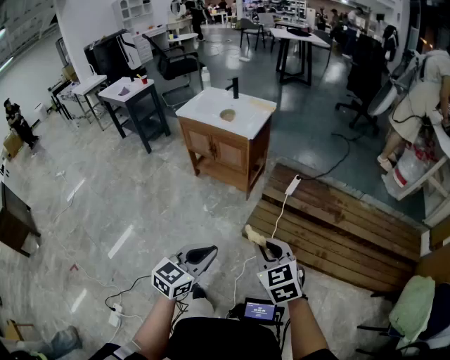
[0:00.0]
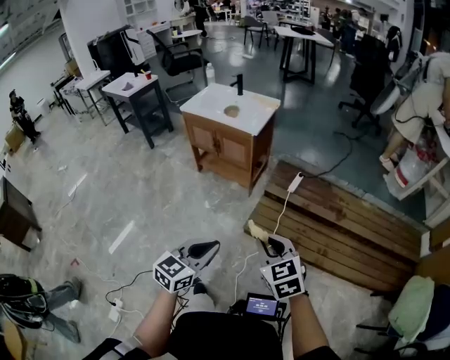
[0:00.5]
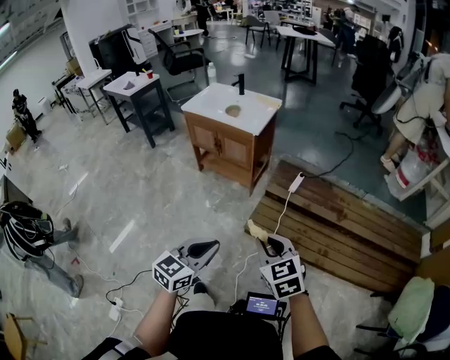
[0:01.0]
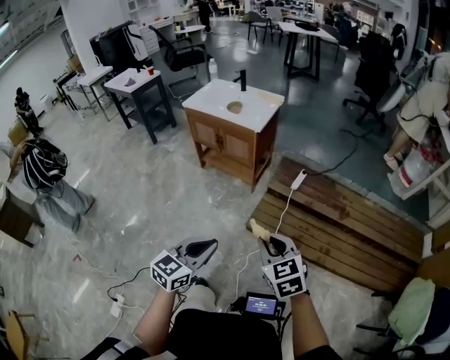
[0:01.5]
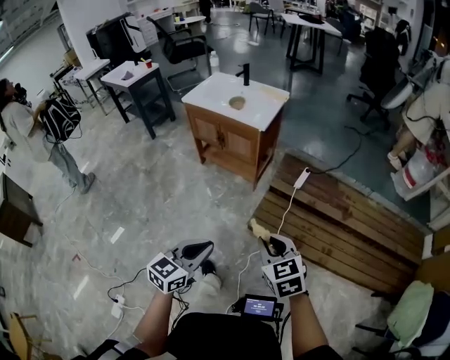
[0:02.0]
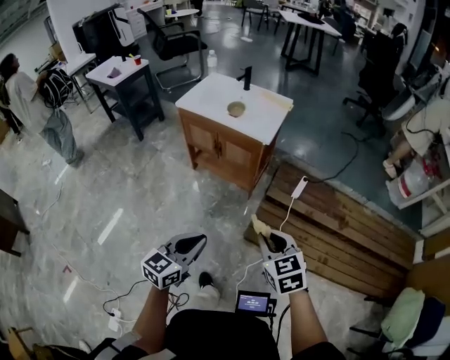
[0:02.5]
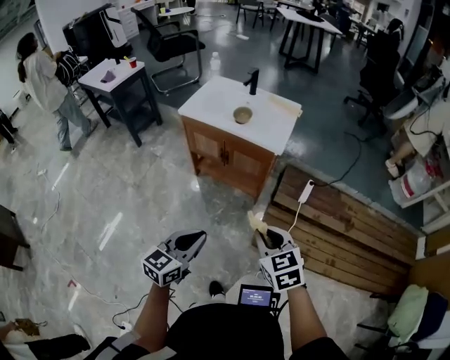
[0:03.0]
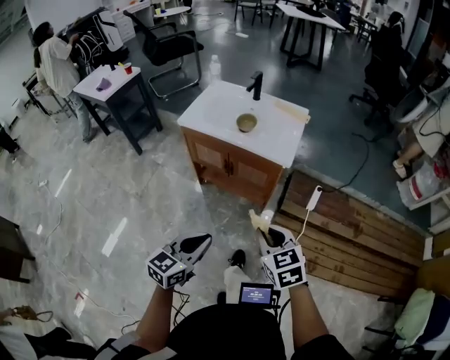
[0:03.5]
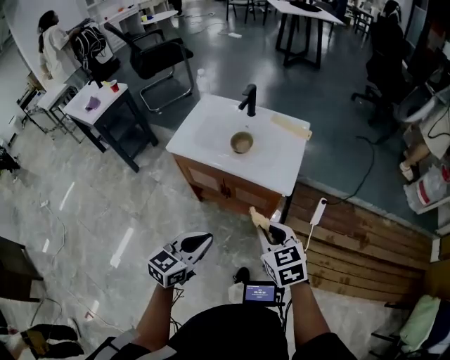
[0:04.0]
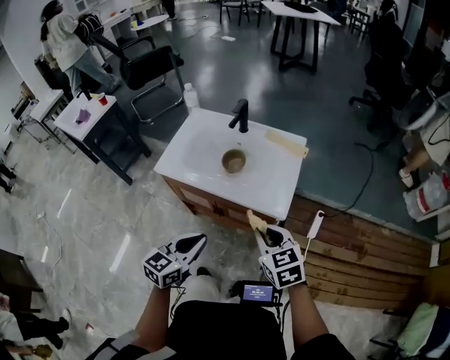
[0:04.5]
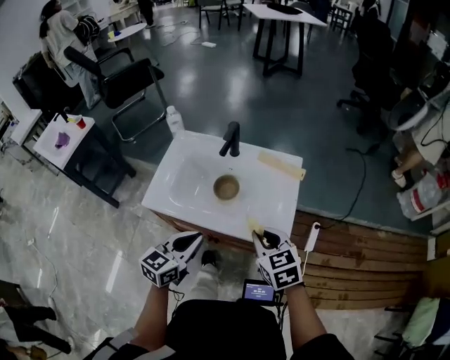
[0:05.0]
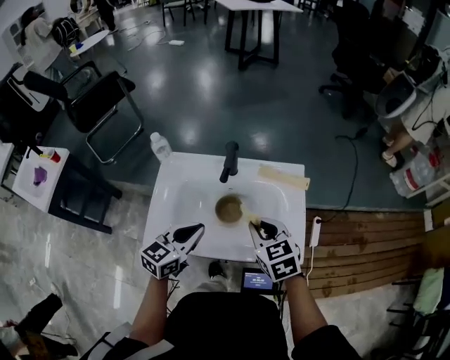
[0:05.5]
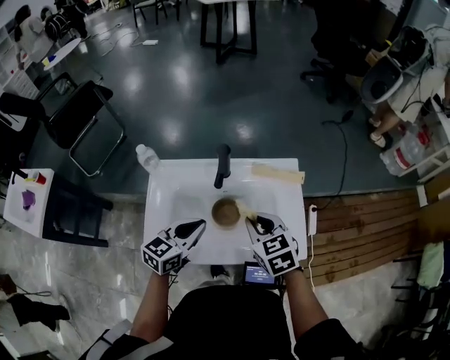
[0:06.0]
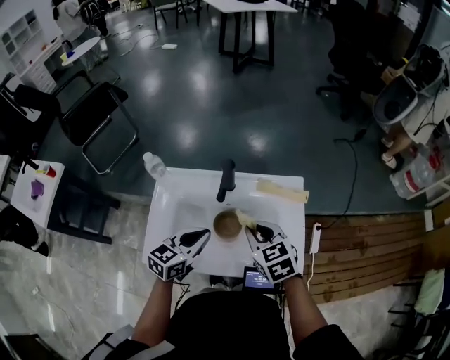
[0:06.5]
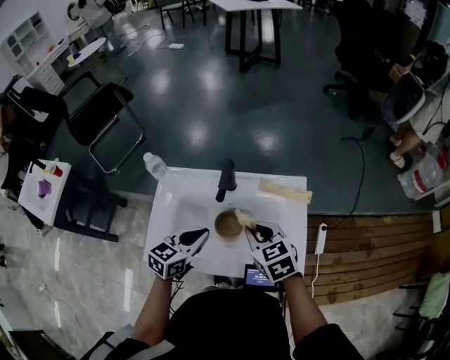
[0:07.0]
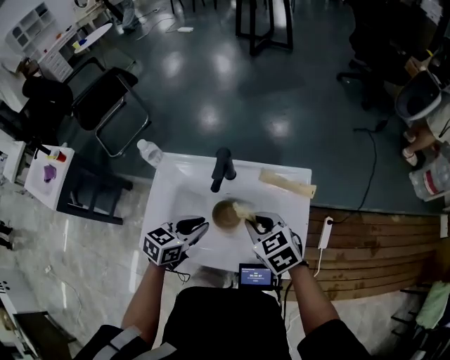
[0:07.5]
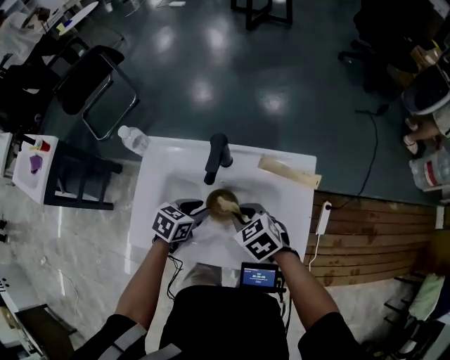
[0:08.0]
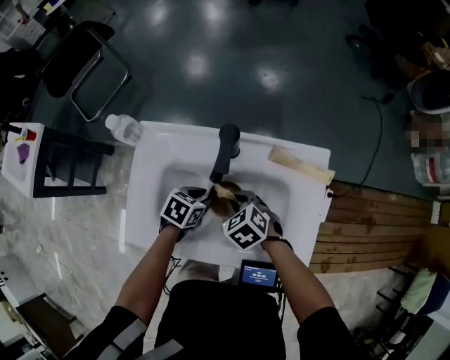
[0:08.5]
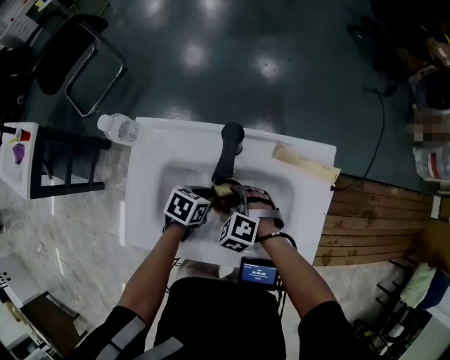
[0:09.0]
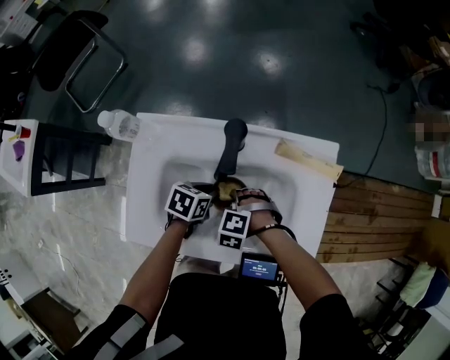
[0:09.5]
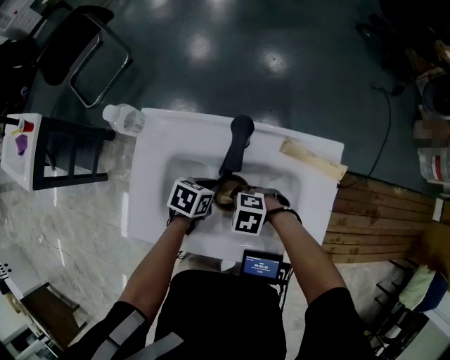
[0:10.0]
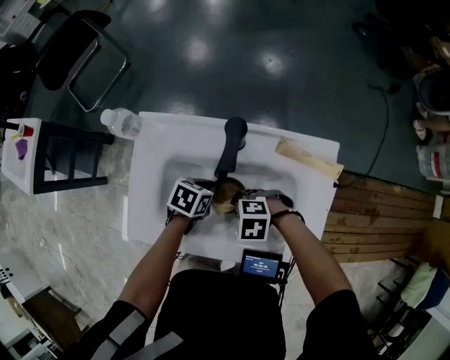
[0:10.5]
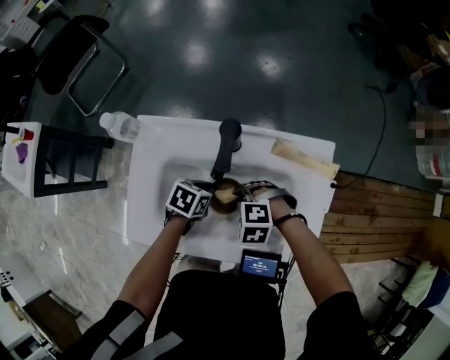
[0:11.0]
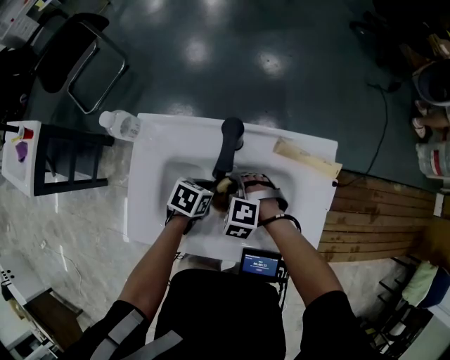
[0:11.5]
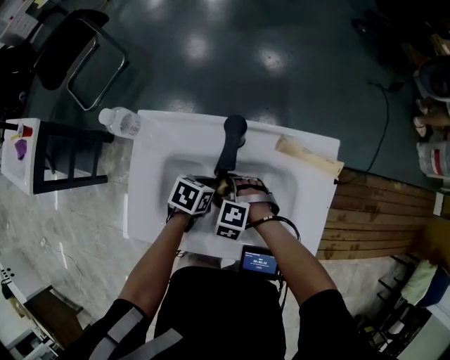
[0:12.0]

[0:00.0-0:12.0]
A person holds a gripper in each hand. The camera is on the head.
0:00.0 to 0:02.0: The left gripper moves to the left, some 5 cm; the right gripper moves roughly 5 cm.
0:02.0 to 0:04.0: The two grippers travel together, forward and to the left, about 50 cm.
0:04.0 to 0:06.0: The two grippers go roughly 40 cm forward. The right gripper turns by roughly 20 degrees, while the left gripper changes its angle by some 20 degrees.
0:06.0 to 0:08.0: The grippers both shift downward by some 15 cm. The left gripper tilts its fingers approximately 30 degrees downward, and opens its fingers, while the right gripper turns by roughly 30 degrees.
0:08.0 to 0:10.0: The right gripper shifts roughly 10 cm downward, and swivels about 40 degrees; the left gripper moves downward, approximately 10 cm.
0:10.0 to 0:12.0: The right gripper moves approximately 5 cm, and swivels approximately 30 degrees.

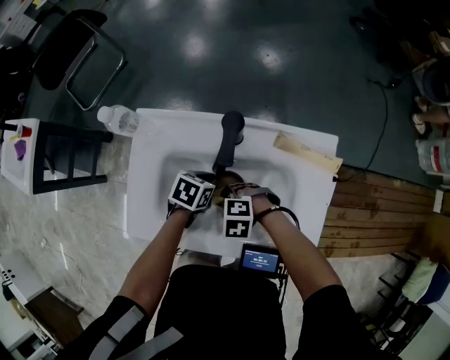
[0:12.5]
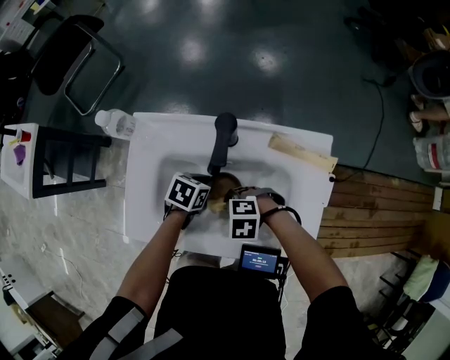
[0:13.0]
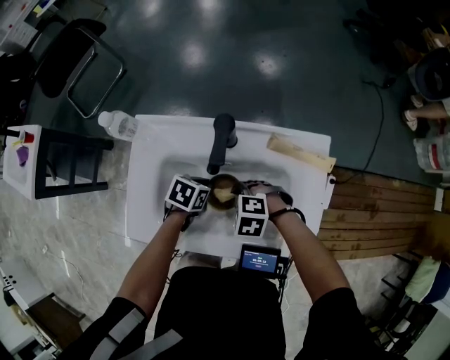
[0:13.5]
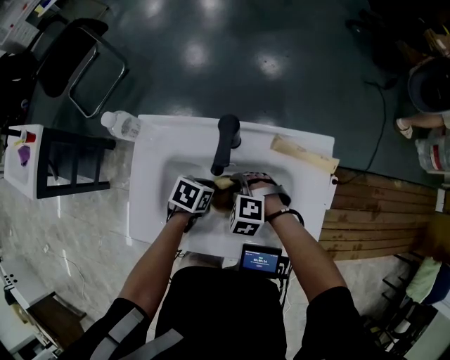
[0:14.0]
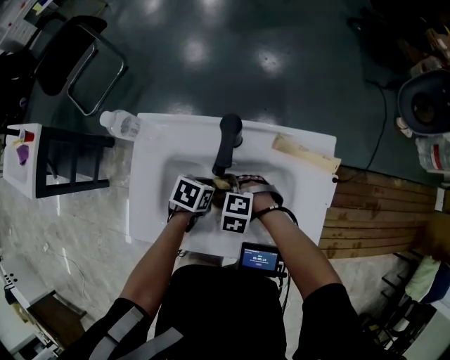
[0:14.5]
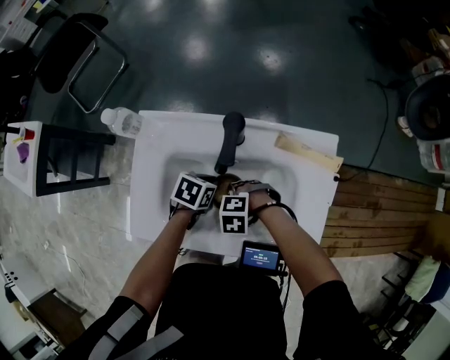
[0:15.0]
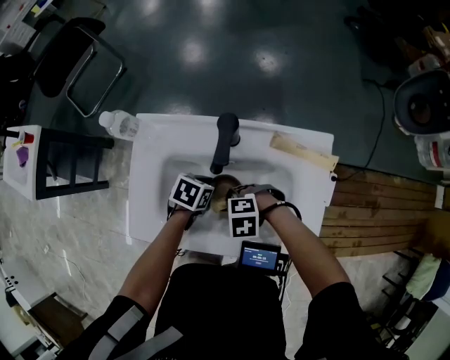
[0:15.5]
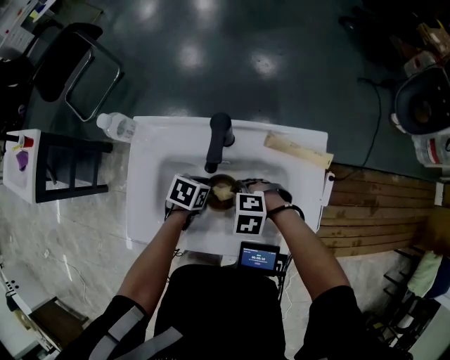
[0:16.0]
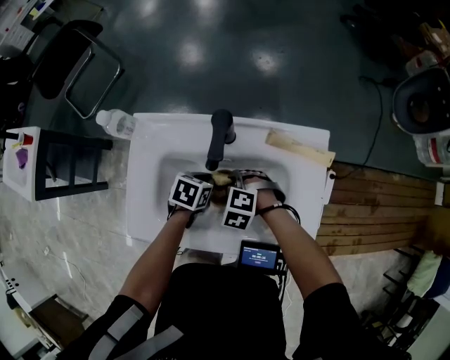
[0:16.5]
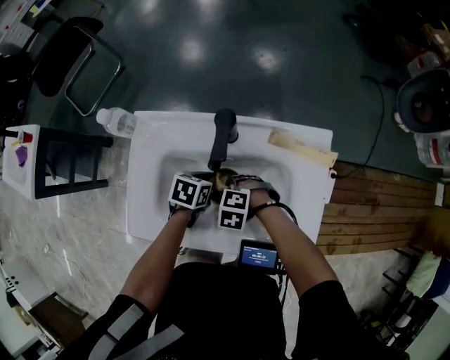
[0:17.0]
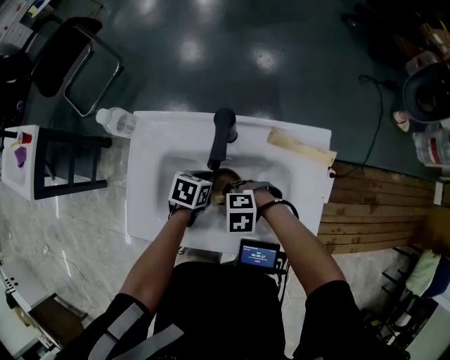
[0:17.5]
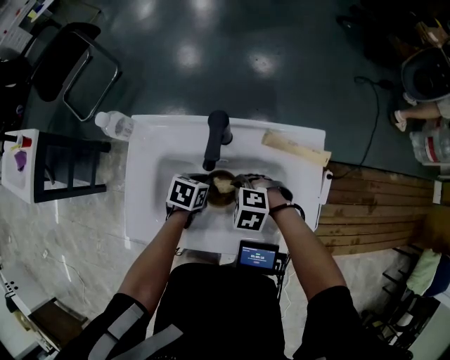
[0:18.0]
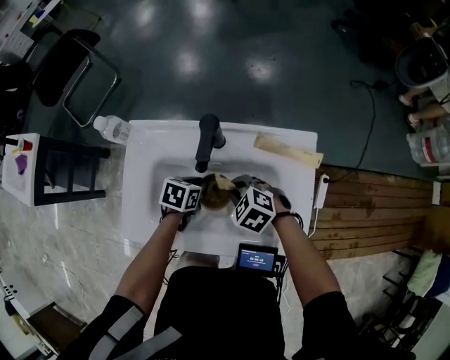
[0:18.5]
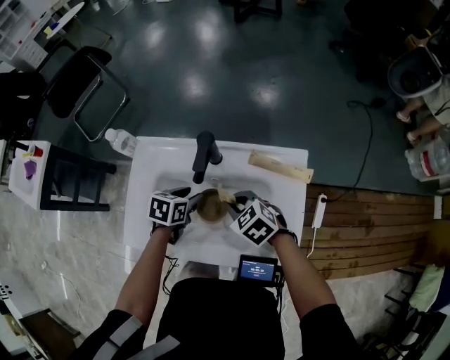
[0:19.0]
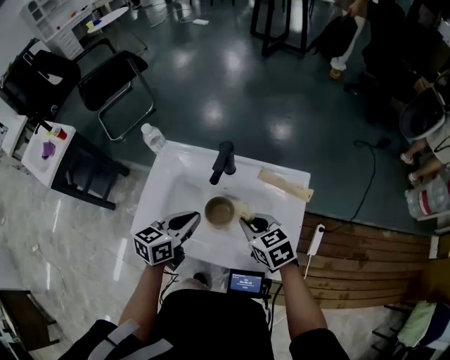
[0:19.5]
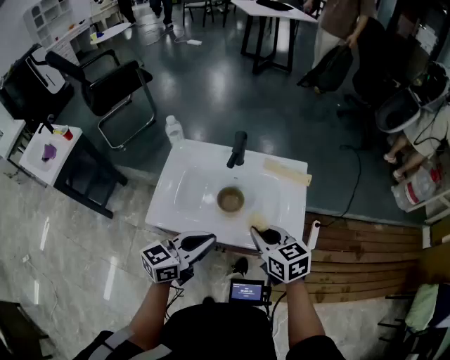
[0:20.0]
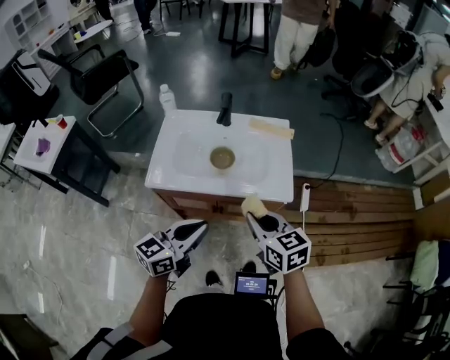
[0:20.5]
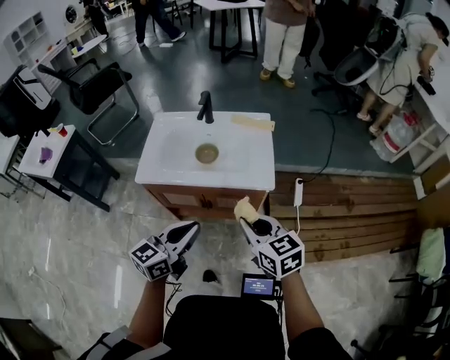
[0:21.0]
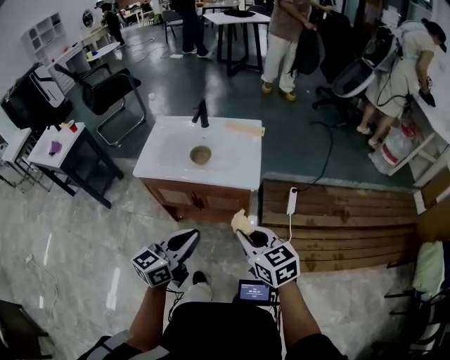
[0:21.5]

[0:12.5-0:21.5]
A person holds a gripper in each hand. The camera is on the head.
0:17.0 to 0:19.5: Both grippers travel together upward, roughly 20 cm. The left gripper points its fingers about 40 degrees further upward, and opens, then closes again. Meanwhile the right gripper tilts its fingers roughly 40 degrees upward.
0:19.5 to 0:21.5: The pair of grippers is taken backward, approximately 50 cm. The left gripper changes its angle by roughly 20 degrees.

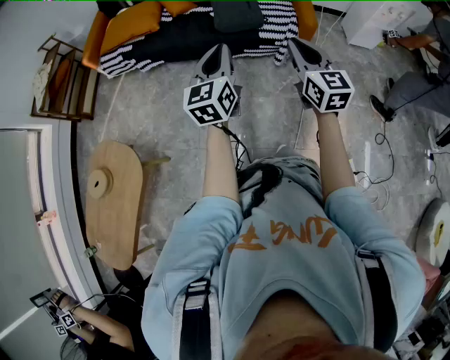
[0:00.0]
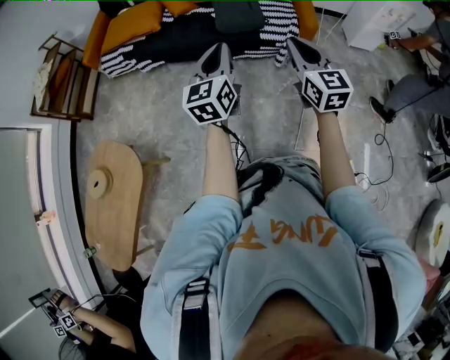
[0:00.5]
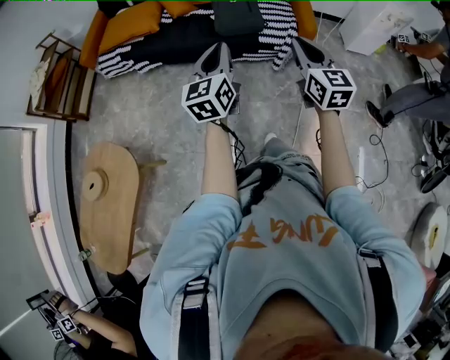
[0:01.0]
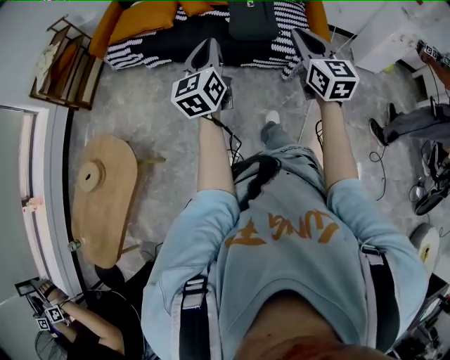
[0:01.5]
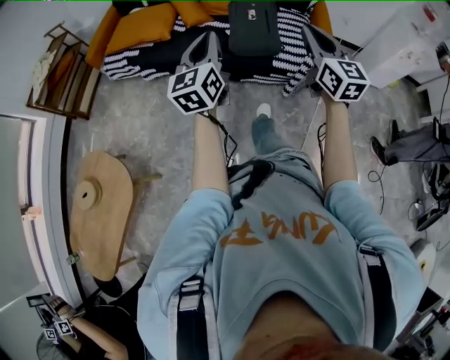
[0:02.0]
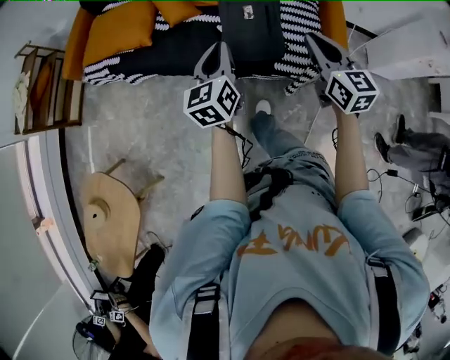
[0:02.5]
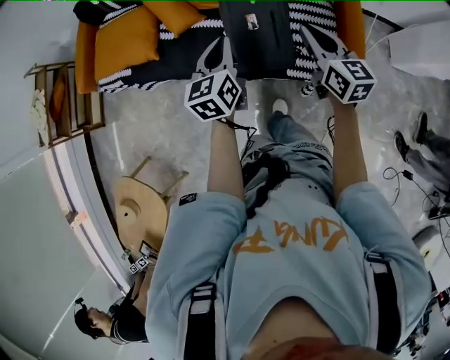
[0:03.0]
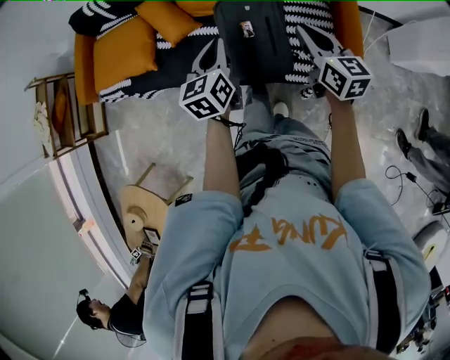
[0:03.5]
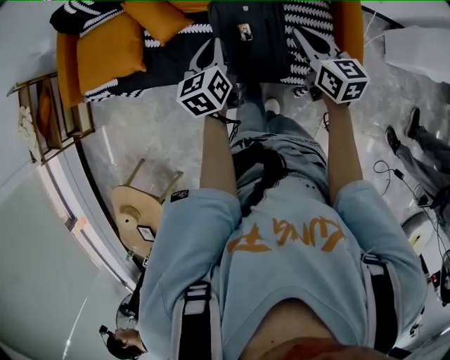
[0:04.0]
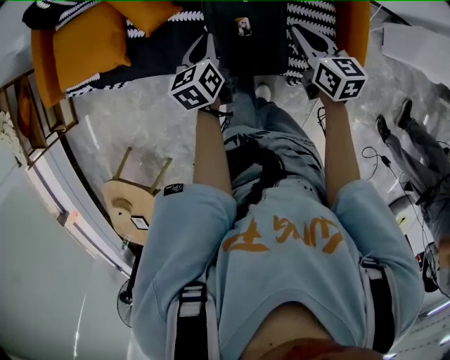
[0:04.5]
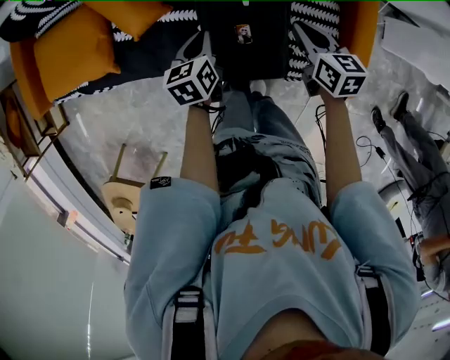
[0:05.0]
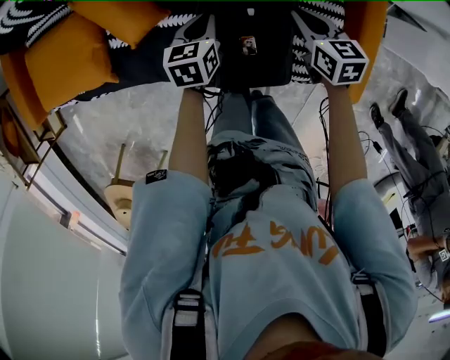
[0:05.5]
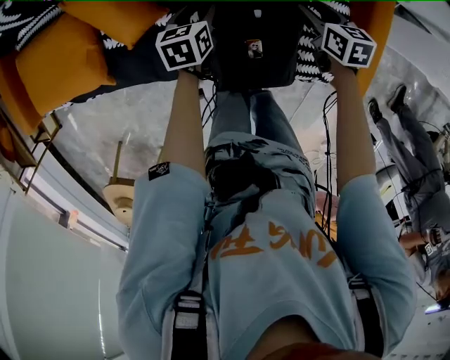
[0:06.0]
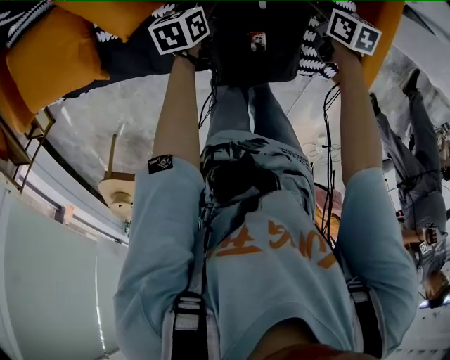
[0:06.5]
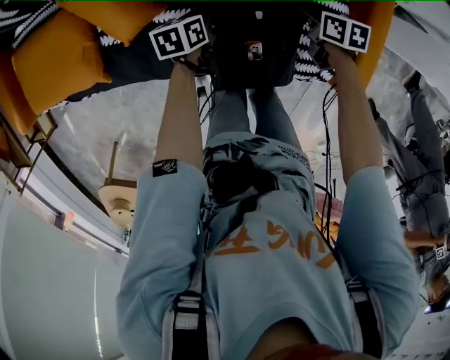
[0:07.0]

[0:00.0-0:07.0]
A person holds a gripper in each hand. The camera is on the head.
0:00.0 to 0:02.0: The left gripper goes roughly 20 cm forward and to the left, while the right gripper shifts some 20 cm forward.
0:02.0 to 0:03.5: The two grippers travel together, forward, some 40 cm. The left gripper rotates some 20 degrees; the right gripper turns by roughly 30 degrees.
0:03.5 to 0:05.0: The two grippers go some 25 cm downward and forward. The right gripper turns by about 30 degrees. Meanwhile the left gripper swivels some 30 degrees.
0:05.0 to 0:07.0: Both grippers move downward and forward, some 15 cm. The right gripper turns by some 20 degrees, and opens. Meanwhile the left gripper changes its angle by approximately 20 degrees, and opens its fingers.
